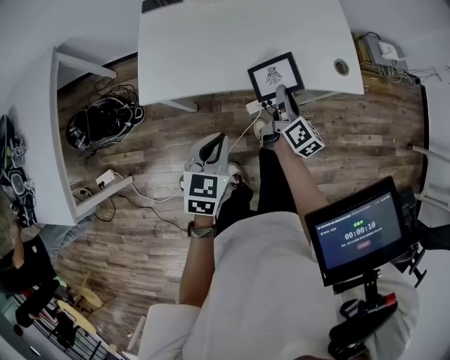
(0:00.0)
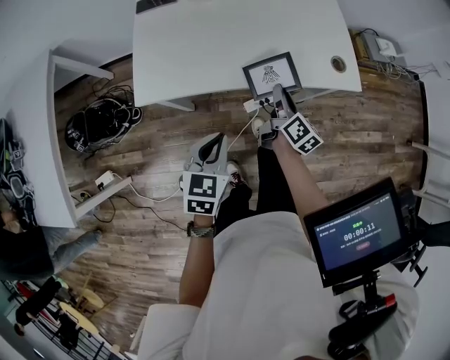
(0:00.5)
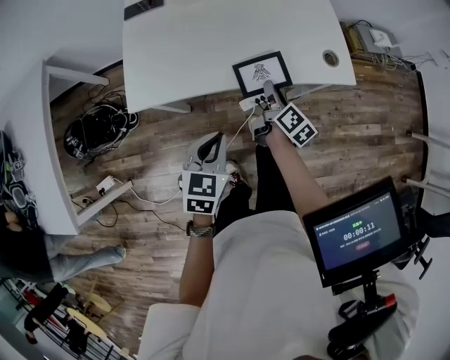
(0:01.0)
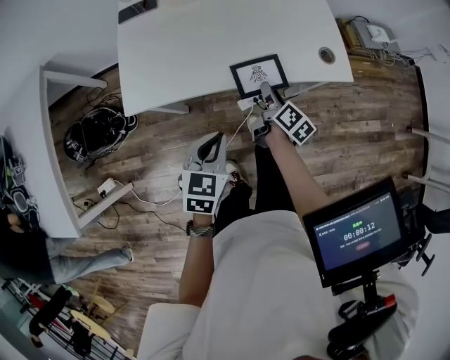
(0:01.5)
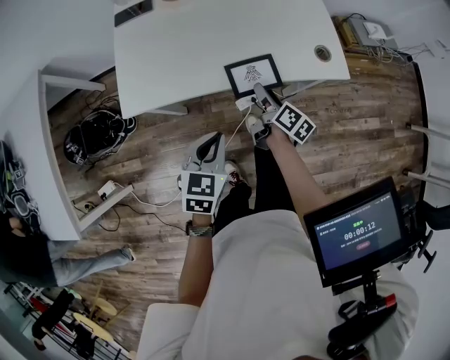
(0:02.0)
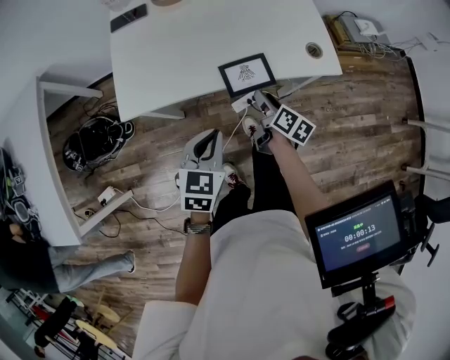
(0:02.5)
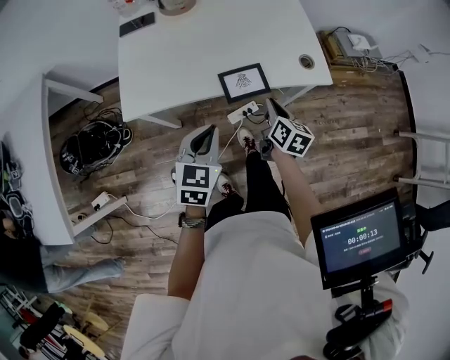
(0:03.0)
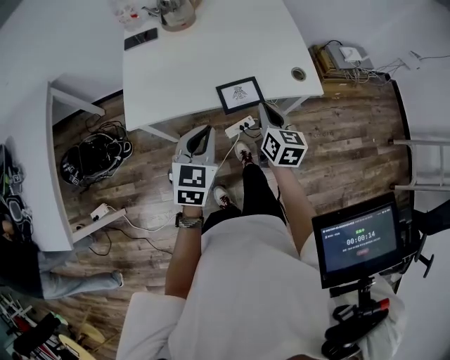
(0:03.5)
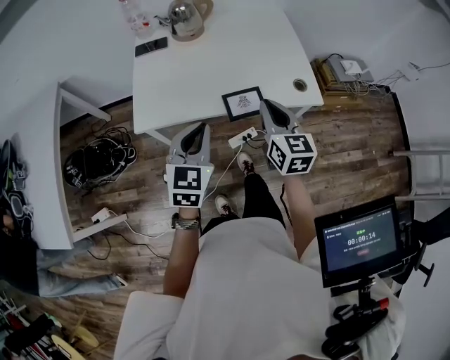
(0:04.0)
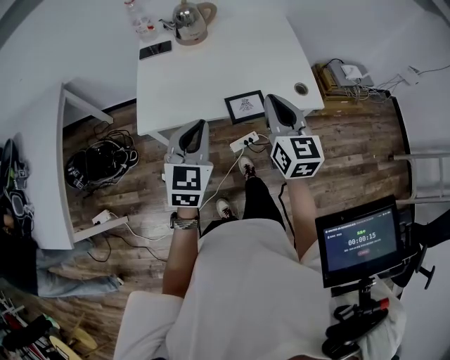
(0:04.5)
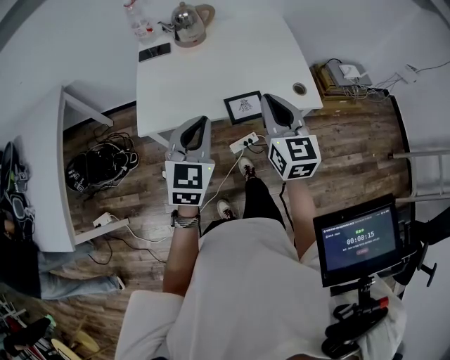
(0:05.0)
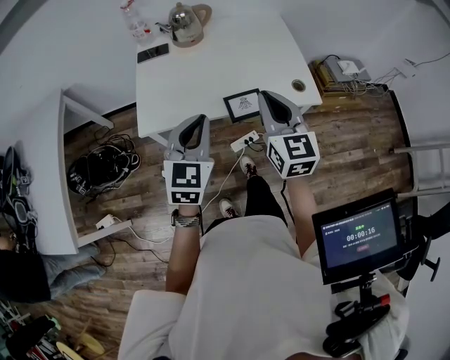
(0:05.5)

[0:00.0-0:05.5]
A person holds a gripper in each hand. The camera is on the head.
0:00.0 to 0:02.0: The right gripper shifts roughly 5 cm downward, and opens up.
0:02.0 to 0:03.5: The right gripper goes approximately 15 cm upward, rotates around the line of its fingers by approximately 40 degrees, counterclockwise from behind, and closes up. Meanwhile the left gripper moves upward, roughly 10 cm.
0:03.5 to 0:05.5: The right gripper goes about 15 cm upward, and rotates roughly 30 degrees; the left gripper moves upward, about 10 cm.

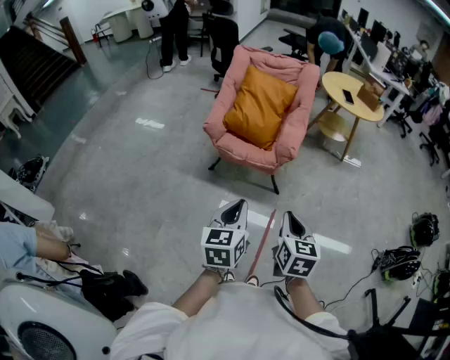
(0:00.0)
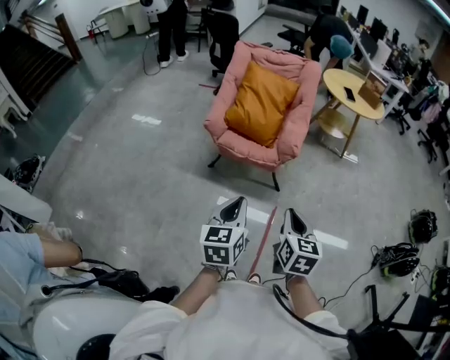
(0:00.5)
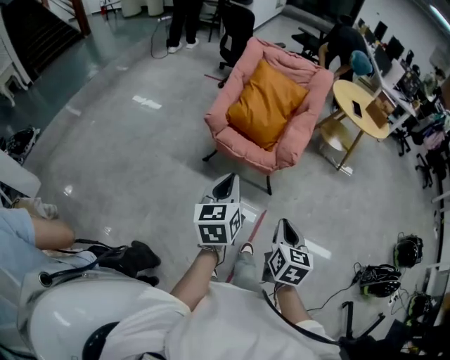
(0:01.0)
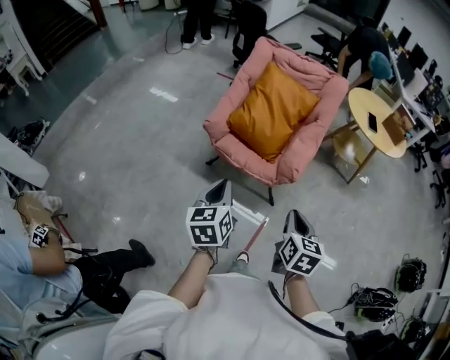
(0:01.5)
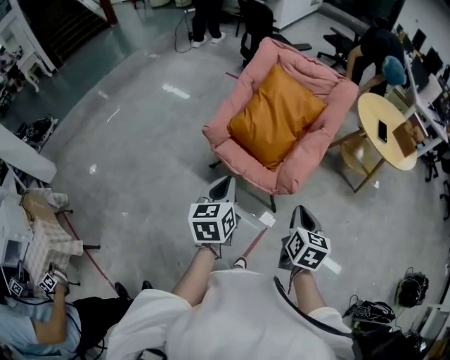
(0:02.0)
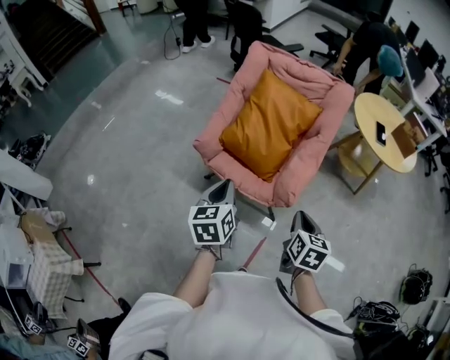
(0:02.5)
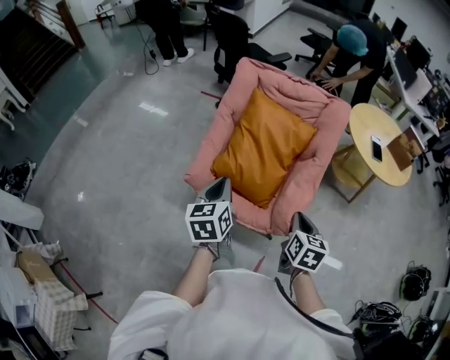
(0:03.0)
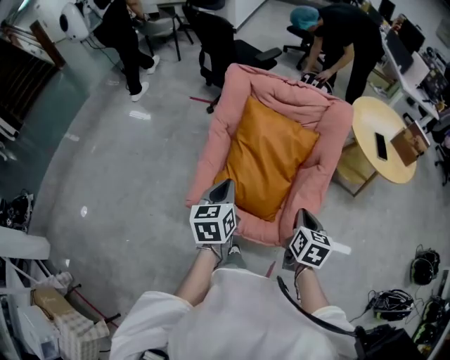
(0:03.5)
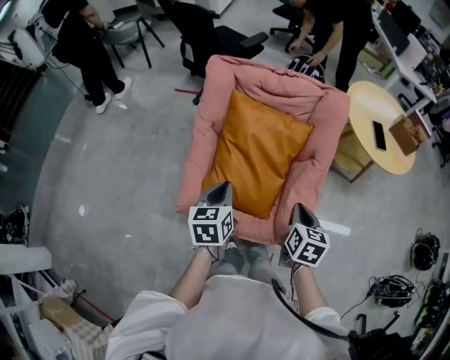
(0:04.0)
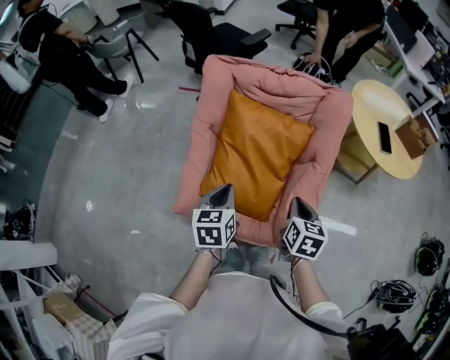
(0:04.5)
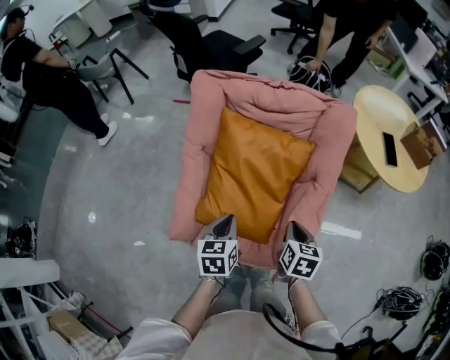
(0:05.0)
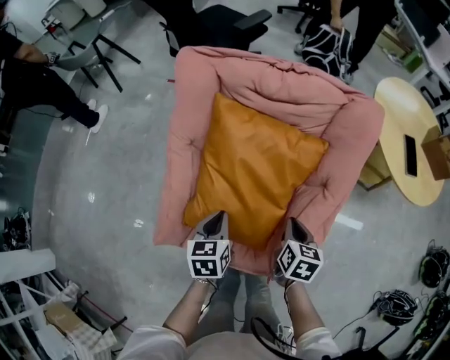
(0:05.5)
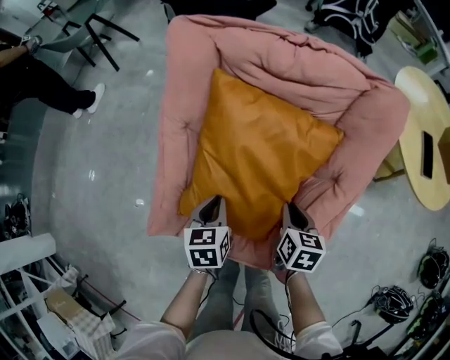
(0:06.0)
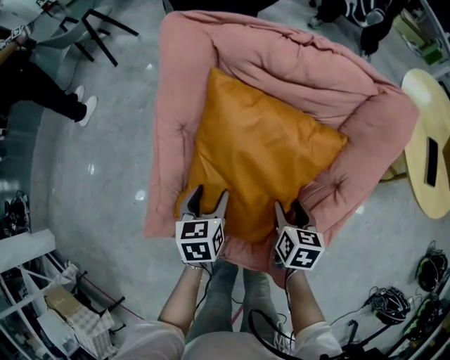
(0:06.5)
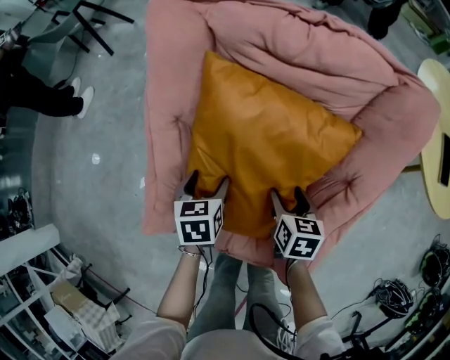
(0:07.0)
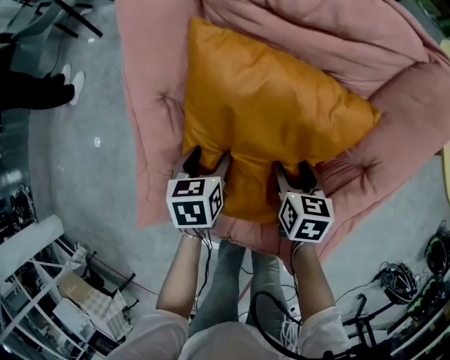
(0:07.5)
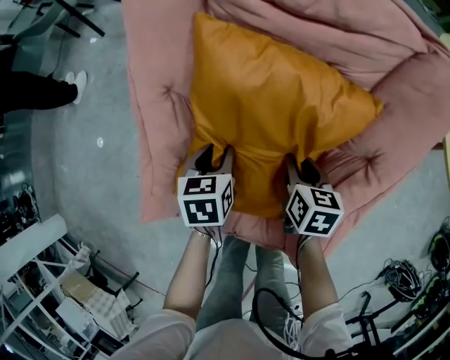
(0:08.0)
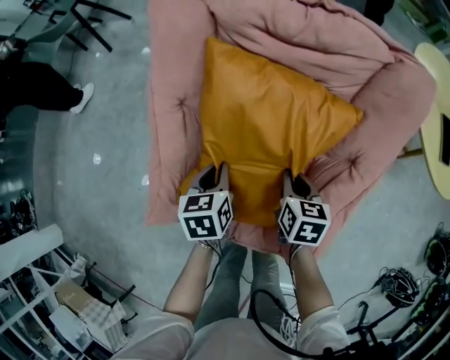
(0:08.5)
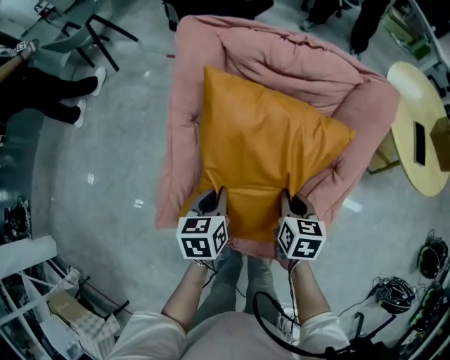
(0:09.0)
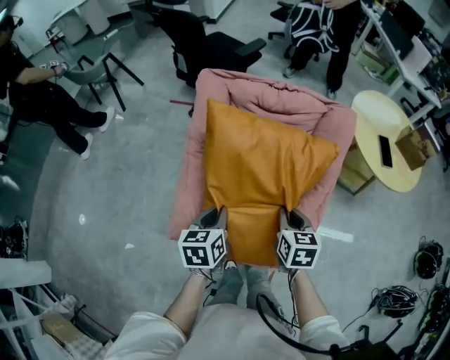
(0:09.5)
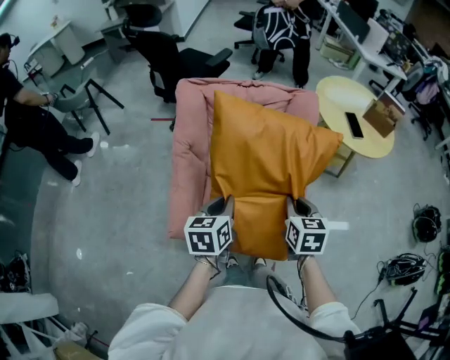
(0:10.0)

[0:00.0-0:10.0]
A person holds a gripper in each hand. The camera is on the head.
0:00.0 to 0:02.0: Both grippers move forward, roughly 30 cm. The left gripper rotates roughly 20 degrees.
0:02.0 to 0:04.0: The grippers both shift forward by some 35 cm. The left gripper rotates some 20 degrees.
0:04.0 to 0:06.0: Both grippers travel together downward and forward, some 25 cm.
0:06.0 to 0:08.0: Both grippers travel together downward and forward, some 10 cm. The left gripper opens up; the right gripper opens.
0:08.0 to 0:10.0: The grippers both shift upward and backward by approximately 35 cm. The left gripper swivels about 30 degrees, and closes. Meanwhile the right gripper turns by some 30 degrees.

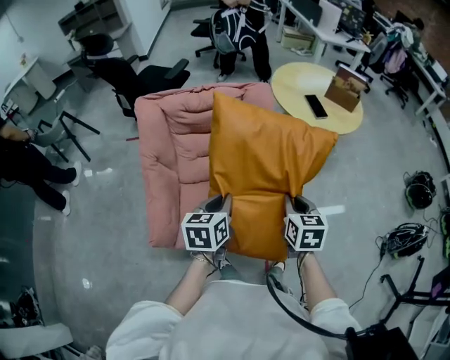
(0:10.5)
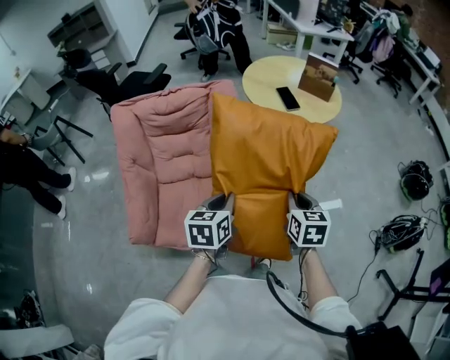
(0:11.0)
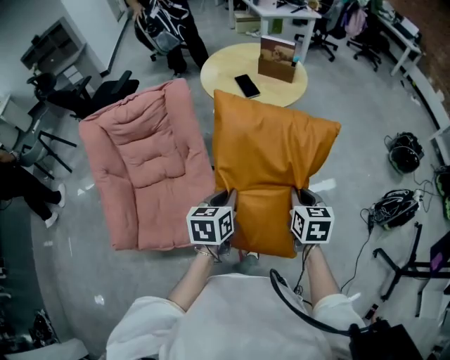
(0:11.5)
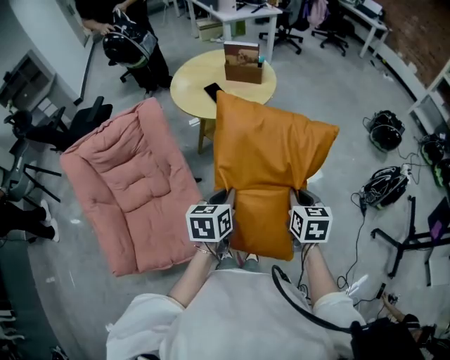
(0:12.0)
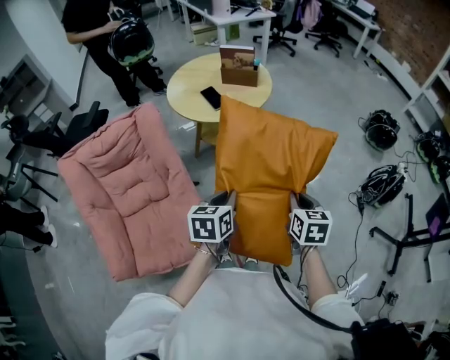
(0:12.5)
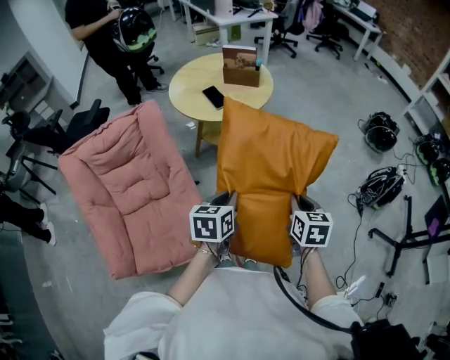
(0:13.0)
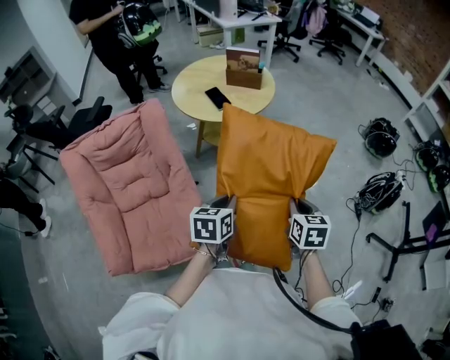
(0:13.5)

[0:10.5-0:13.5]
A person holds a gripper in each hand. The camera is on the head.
0:10.5 to 0:12.0: Both grippers travel together to the right, approximately 35 cm. The right gripper changes its angle by roughly 20 degrees. Meanwhile the left gripper rotates approximately 20 degrees.
0:12.0 to 0:13.5: There are only small adjustments of the grippers.

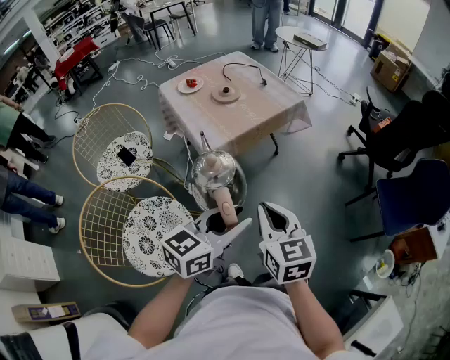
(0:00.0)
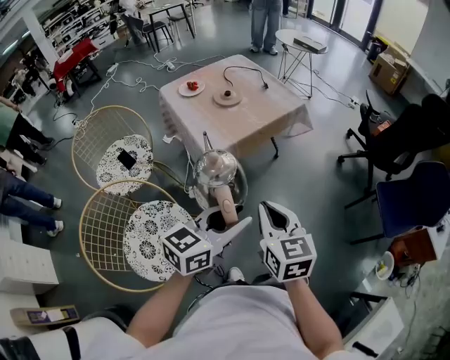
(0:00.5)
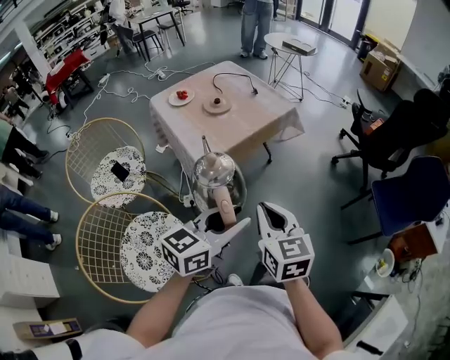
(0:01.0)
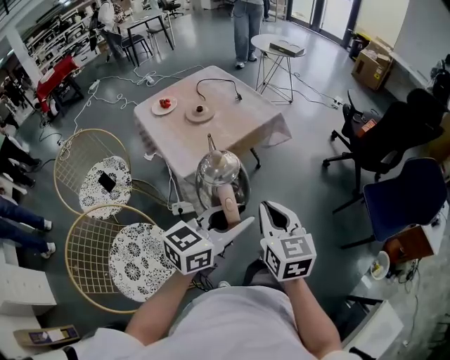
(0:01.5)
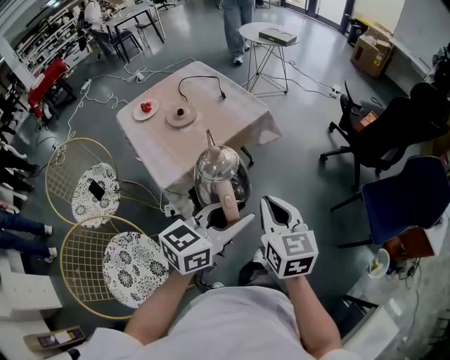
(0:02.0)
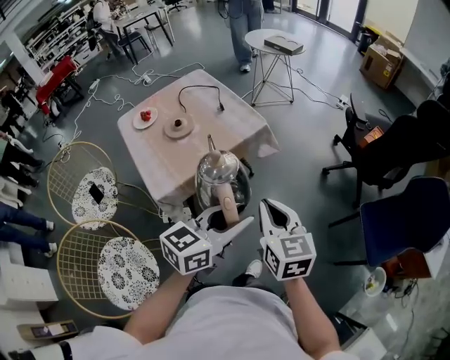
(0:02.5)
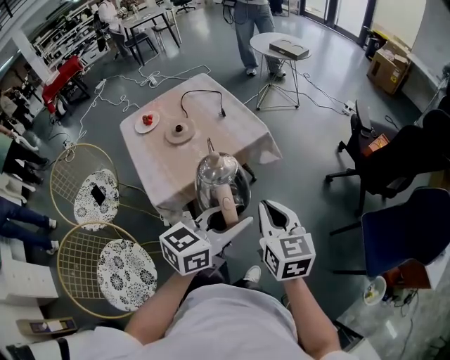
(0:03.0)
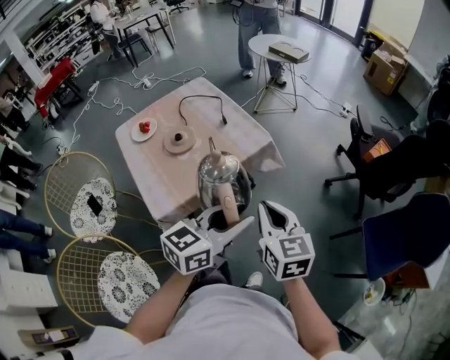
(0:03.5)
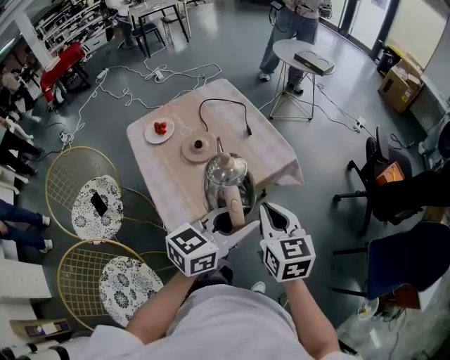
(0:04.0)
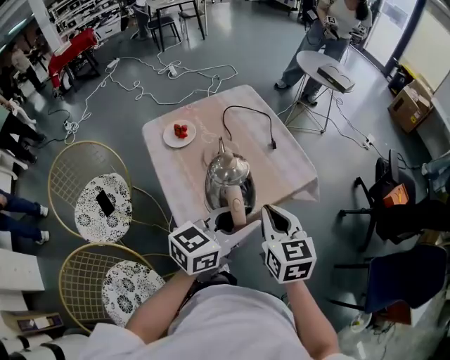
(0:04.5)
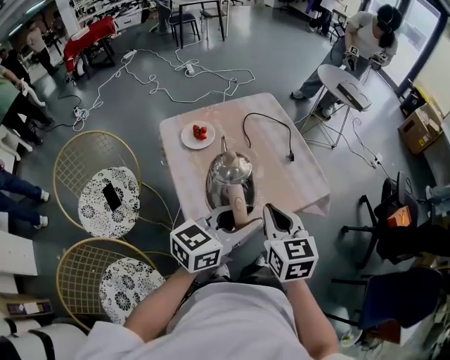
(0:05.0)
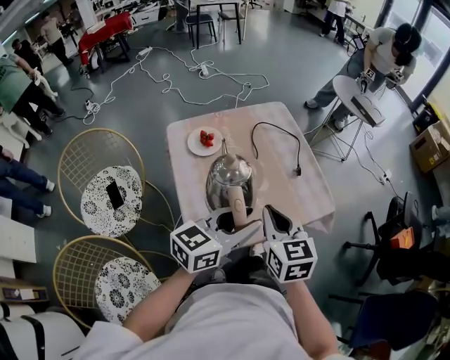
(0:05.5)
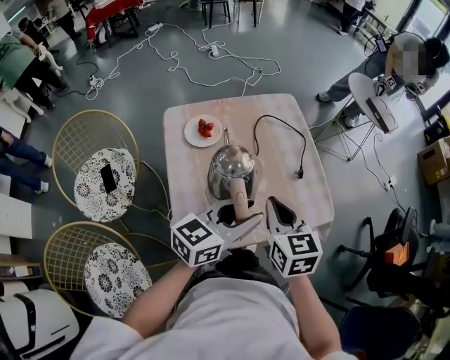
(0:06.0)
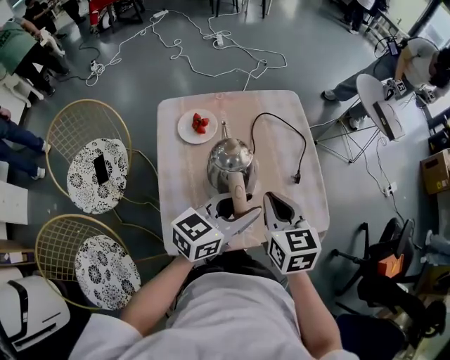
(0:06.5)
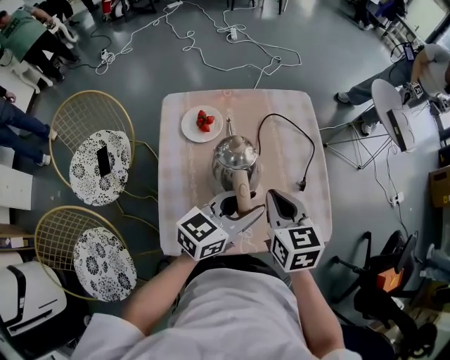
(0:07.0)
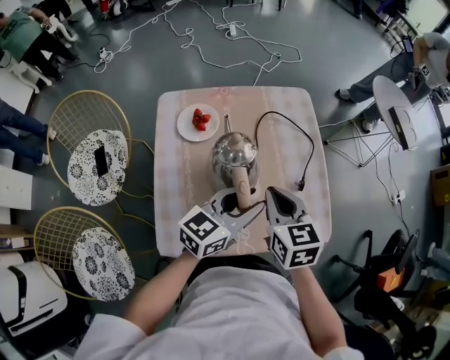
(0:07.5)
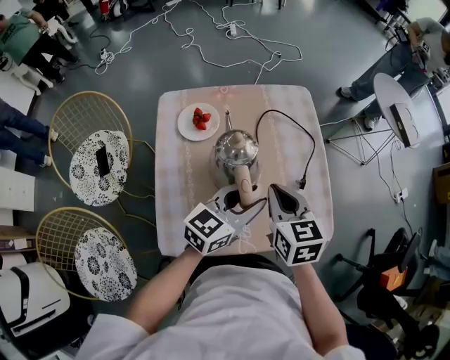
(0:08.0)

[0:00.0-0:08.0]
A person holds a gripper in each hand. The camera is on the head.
0:00.0 to 0:02.0: The grippers both shift forward and to the right by about 20 cm.
0:02.0 to 0:04.0: The grippers both shift forward and to the left by about 20 cm.
0:04.0 to 0:06.0: The grippers both shift to the left and forward by approximately 25 cm.
0:06.0 to 0:08.0: The two grippers go some 10 cm forward and downward.
